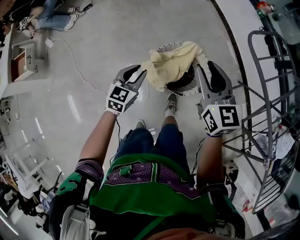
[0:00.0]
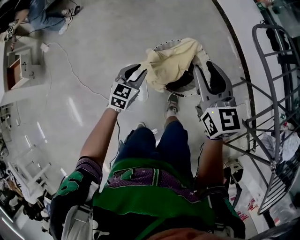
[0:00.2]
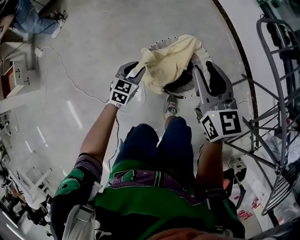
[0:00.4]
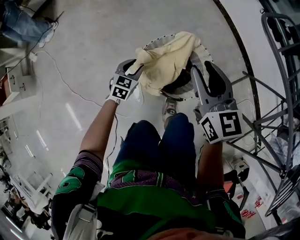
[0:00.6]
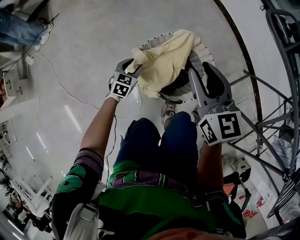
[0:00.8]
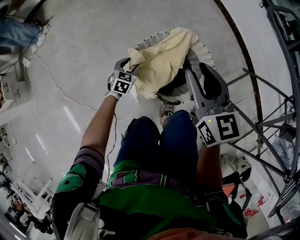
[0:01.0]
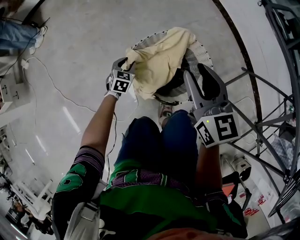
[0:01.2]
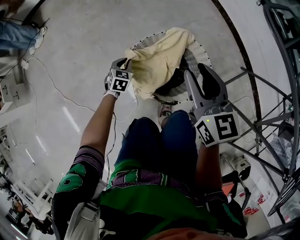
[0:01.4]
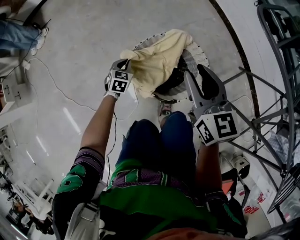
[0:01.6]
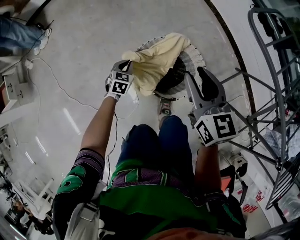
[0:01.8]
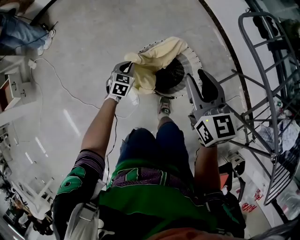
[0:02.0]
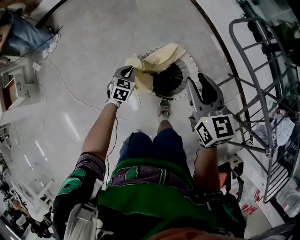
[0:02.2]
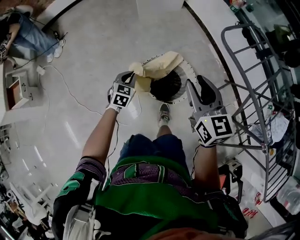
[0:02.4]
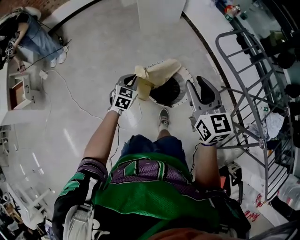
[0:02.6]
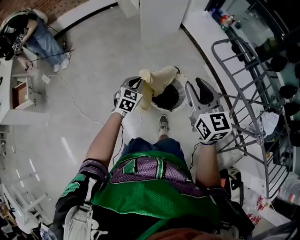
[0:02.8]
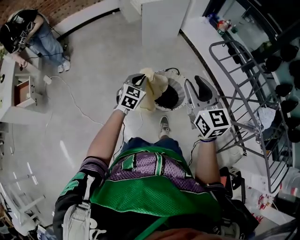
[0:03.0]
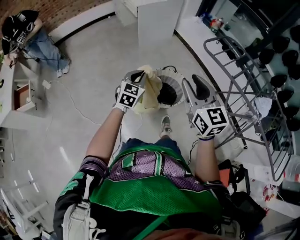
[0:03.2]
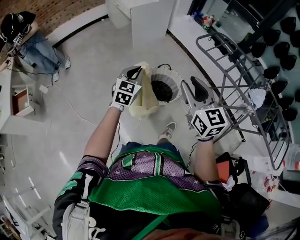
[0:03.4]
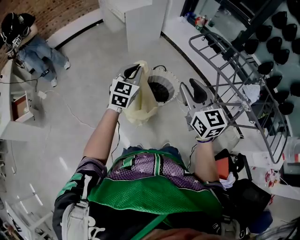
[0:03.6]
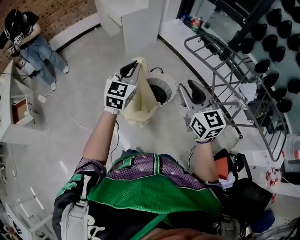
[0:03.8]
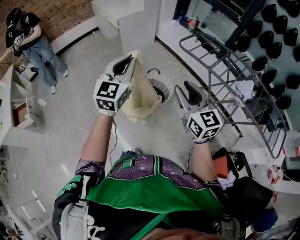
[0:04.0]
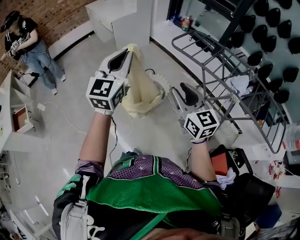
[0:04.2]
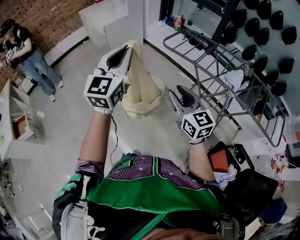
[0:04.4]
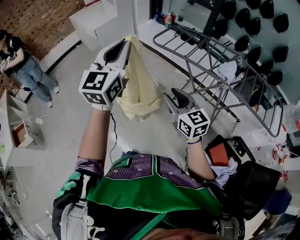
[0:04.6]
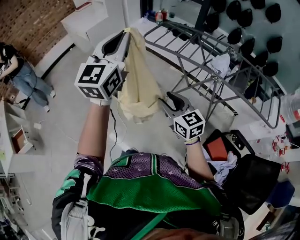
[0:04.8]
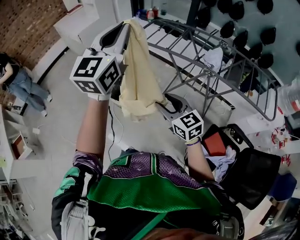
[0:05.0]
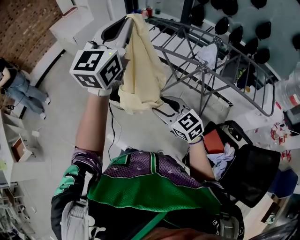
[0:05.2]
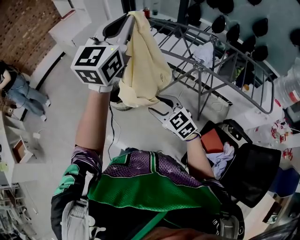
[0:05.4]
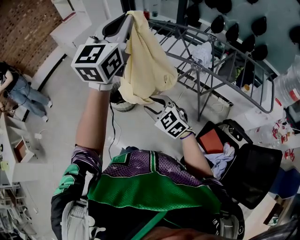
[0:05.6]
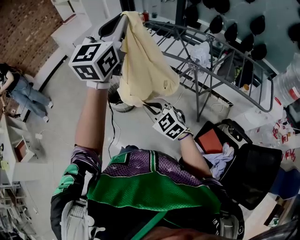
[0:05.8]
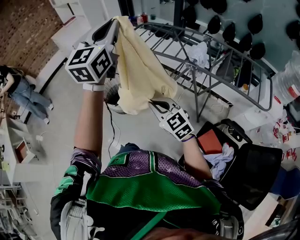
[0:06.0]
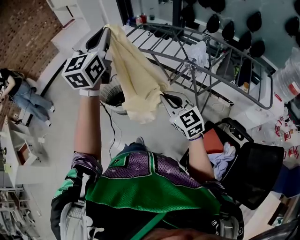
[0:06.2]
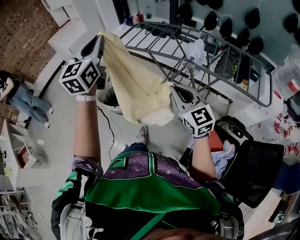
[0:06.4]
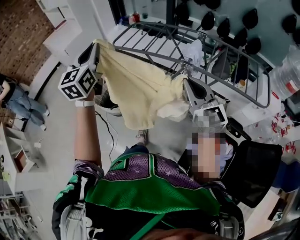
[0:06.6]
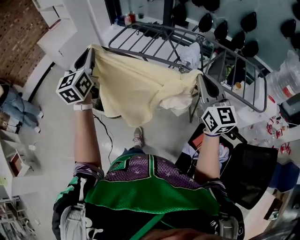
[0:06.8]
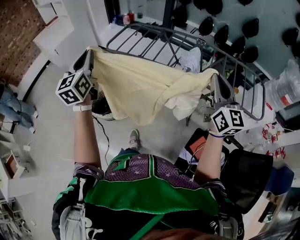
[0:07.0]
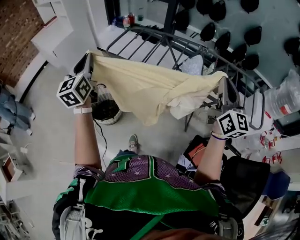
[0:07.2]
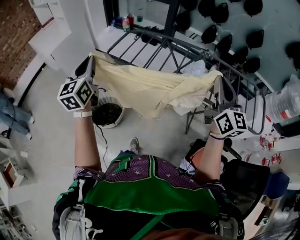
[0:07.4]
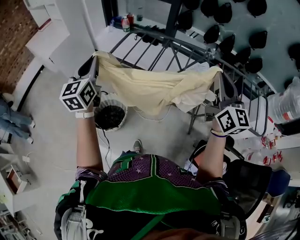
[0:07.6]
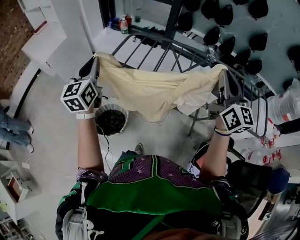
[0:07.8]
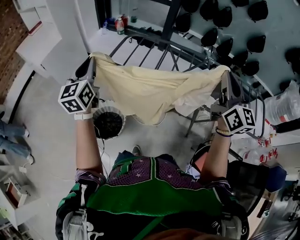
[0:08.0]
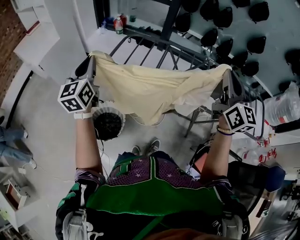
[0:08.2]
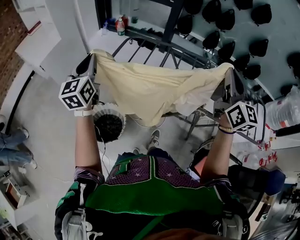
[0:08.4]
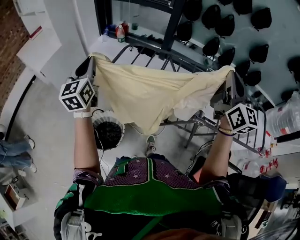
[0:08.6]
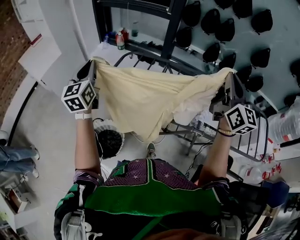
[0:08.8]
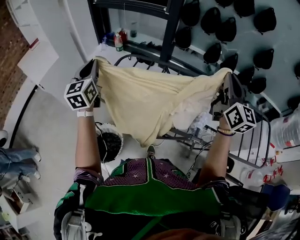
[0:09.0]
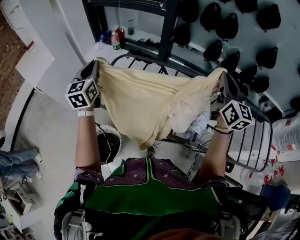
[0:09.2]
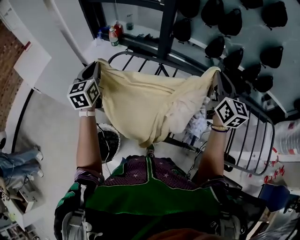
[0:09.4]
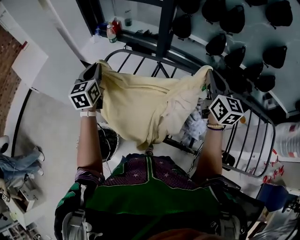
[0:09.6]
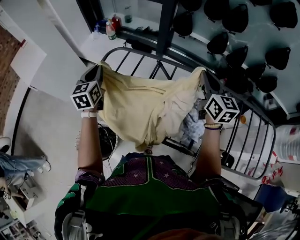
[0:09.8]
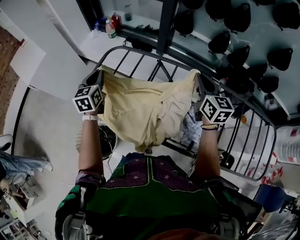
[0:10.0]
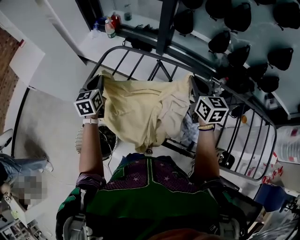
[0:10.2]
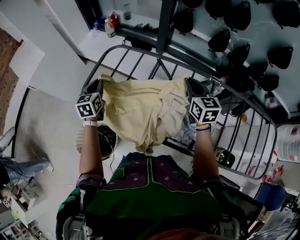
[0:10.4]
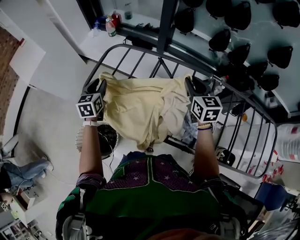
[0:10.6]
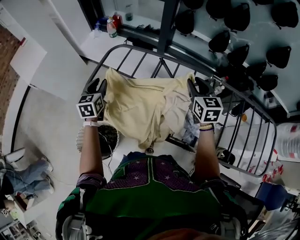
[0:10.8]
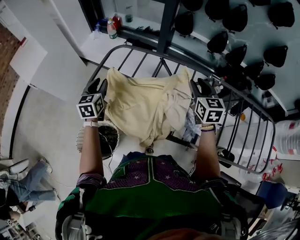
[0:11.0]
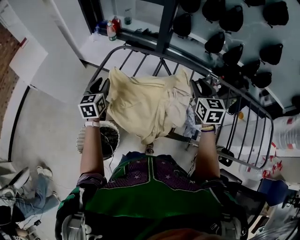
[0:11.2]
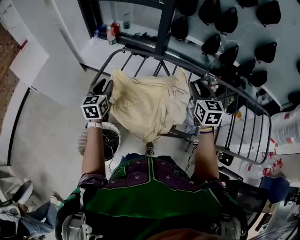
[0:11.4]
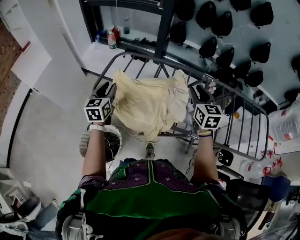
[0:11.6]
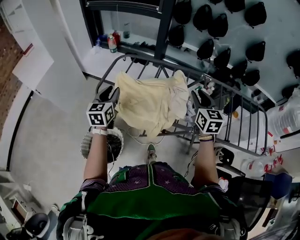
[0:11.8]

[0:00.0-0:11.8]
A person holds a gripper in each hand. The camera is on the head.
0:00.0 to 0:01.4: The left gripper shifts roughly 35 cm downward, turns by about 20 degrees, and opens and closes again. The right gripper heads downward, covering roughly 20 cm.
0:01.4 to 0:03.0: The left gripper goes about 50 cm upward, and changes its angle by roughly 30 degrees, while the right gripper moves upward and backward, roughly 40 cm.
0:03.0 to 0:04.4: The right gripper goes some 25 cm backward and to the right. The left gripper moves upward and backward, about 40 cm, and tips its fingers upward by roughly 30 degrees.
0:04.4 to 0:06.0: The right gripper moves to the right, backward and downward, about 20 cm, and closes its fingers; the left gripper is displaced to the right by roughly 25 cm.
0:06.0 to 0:07.4: The left gripper is displaced forward, downward and to the left by roughly 30 cm. Meanwhile the right gripper heads forward, to the right and upward, covering roughly 40 cm, and turns by roughly 50 degrees.
0:07.4 to 0:08.8: Both grippers move forward, roughly 25 cm.
0:08.8 to 0:10.4: The right gripper heads downward and forward, covering approximately 35 cm, and angles its fingers downward, by roughly 30 degrees. The left gripper is displaced downward, forward and to the right by some 30 cm, and swivels approximately 30 degrees.
0:10.4 to 0:11.8: The grippers both shift backward and upward by roughly 20 cm. The left gripper opens its fingers. The right gripper opens up.

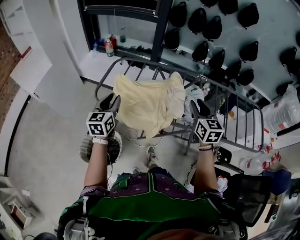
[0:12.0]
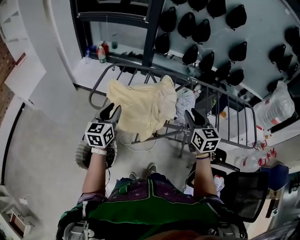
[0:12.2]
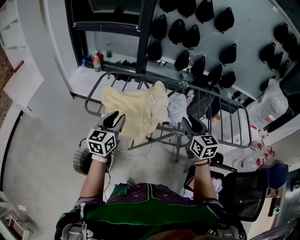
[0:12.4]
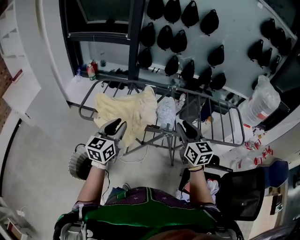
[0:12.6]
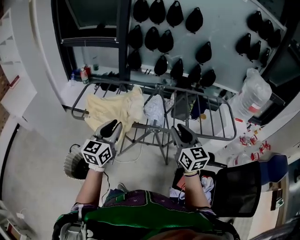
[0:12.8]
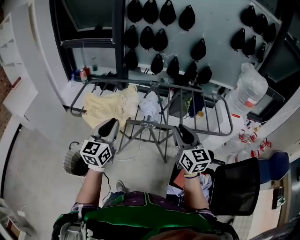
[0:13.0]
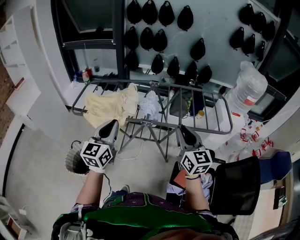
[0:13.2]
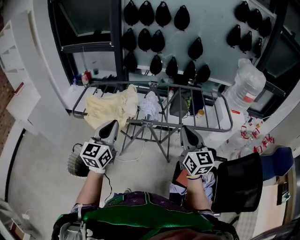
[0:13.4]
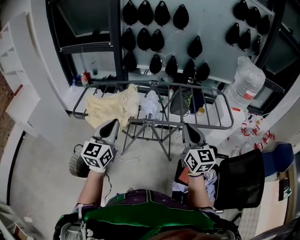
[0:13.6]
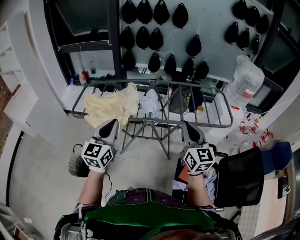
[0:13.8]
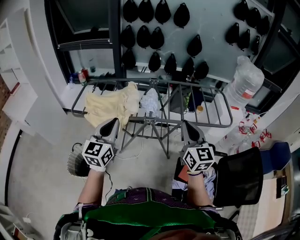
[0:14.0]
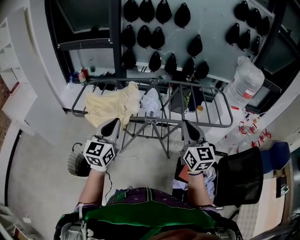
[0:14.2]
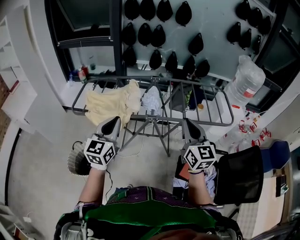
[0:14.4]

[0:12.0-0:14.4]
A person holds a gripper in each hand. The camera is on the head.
0:12.0 to 0:13.2: The right gripper is displaced backward and to the right by some 35 cm; the left gripper heads to the right, backward and upward, covering roughly 40 cm, rotates about 20 degrees, and closes.
0:13.2 to 0:14.4: The right gripper moves about 5 cm.

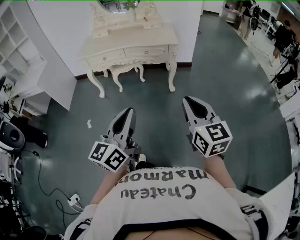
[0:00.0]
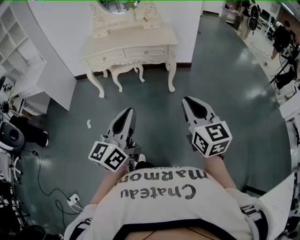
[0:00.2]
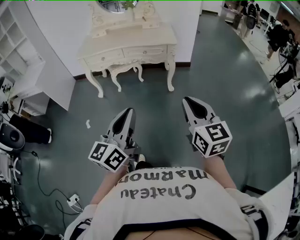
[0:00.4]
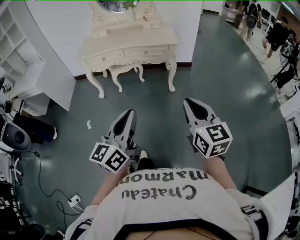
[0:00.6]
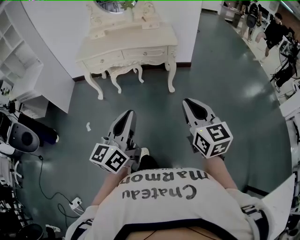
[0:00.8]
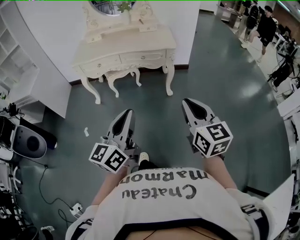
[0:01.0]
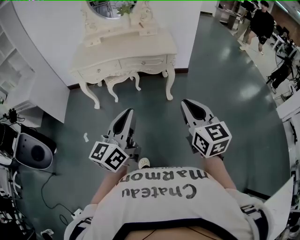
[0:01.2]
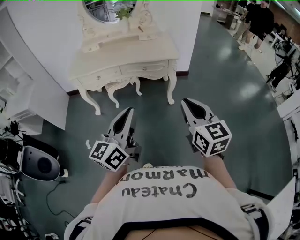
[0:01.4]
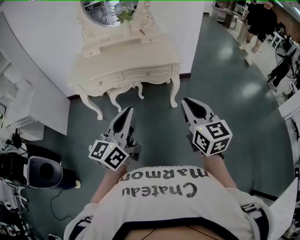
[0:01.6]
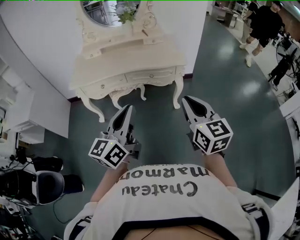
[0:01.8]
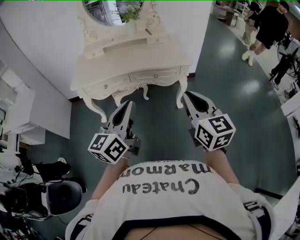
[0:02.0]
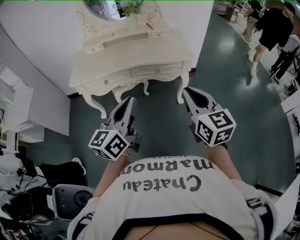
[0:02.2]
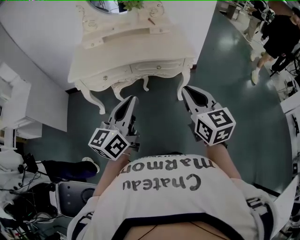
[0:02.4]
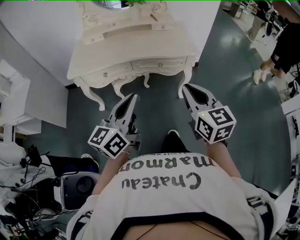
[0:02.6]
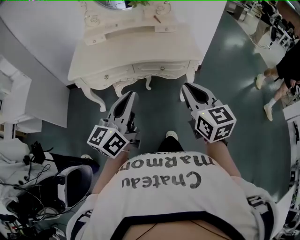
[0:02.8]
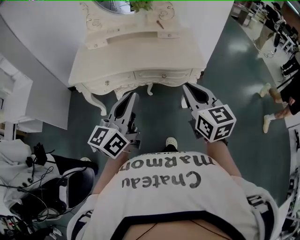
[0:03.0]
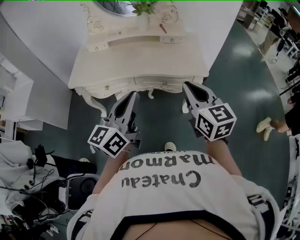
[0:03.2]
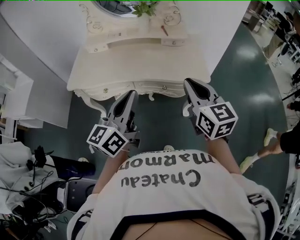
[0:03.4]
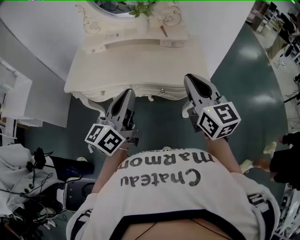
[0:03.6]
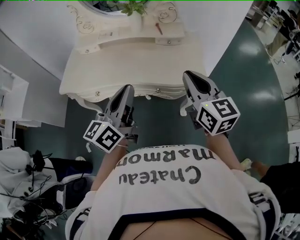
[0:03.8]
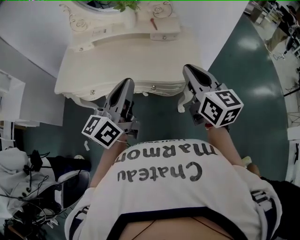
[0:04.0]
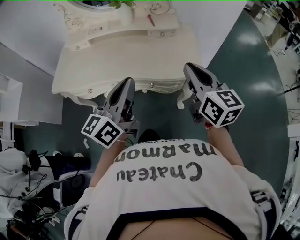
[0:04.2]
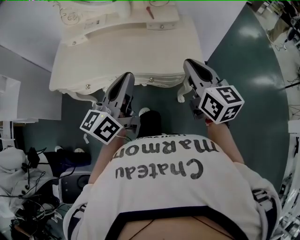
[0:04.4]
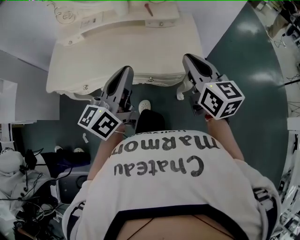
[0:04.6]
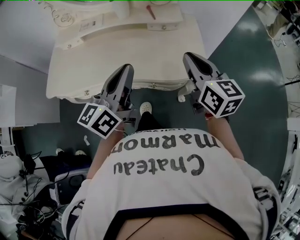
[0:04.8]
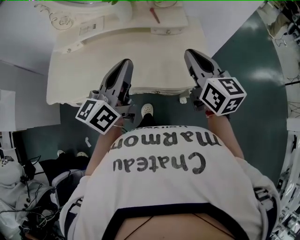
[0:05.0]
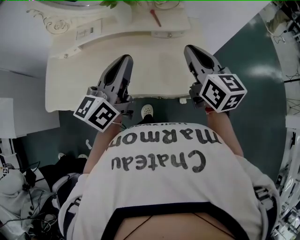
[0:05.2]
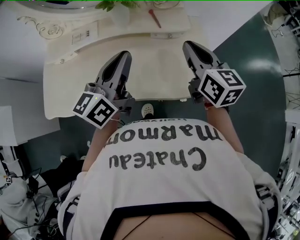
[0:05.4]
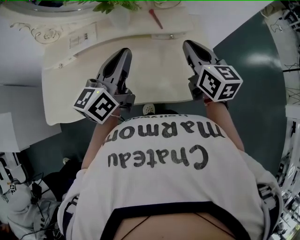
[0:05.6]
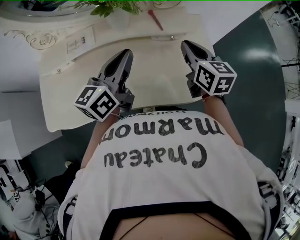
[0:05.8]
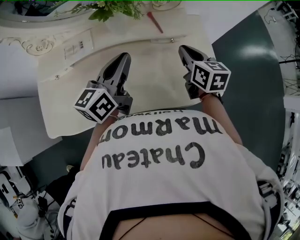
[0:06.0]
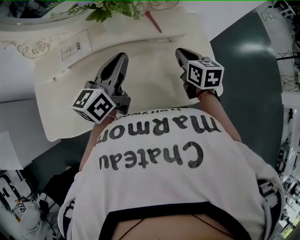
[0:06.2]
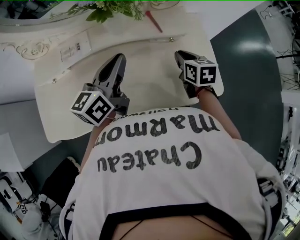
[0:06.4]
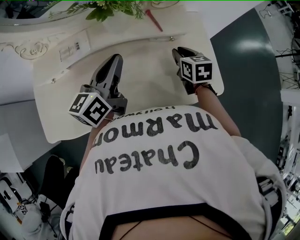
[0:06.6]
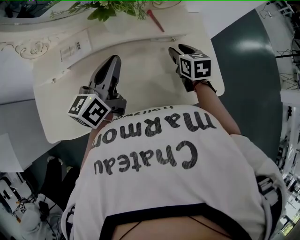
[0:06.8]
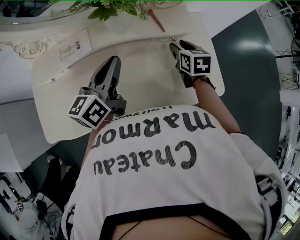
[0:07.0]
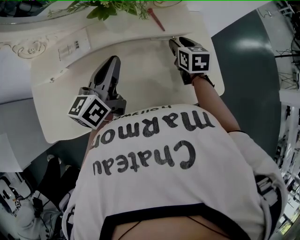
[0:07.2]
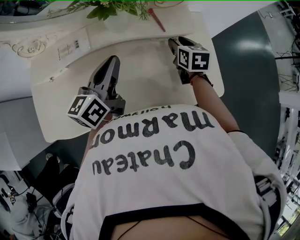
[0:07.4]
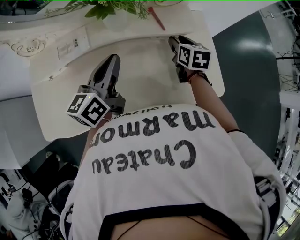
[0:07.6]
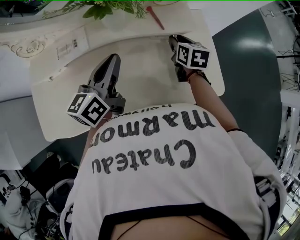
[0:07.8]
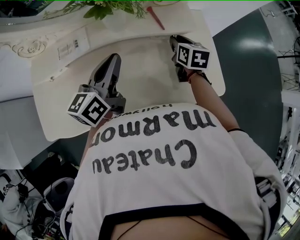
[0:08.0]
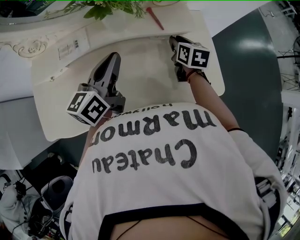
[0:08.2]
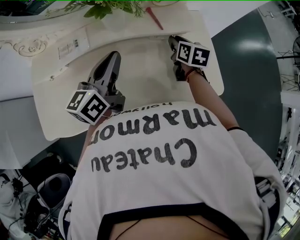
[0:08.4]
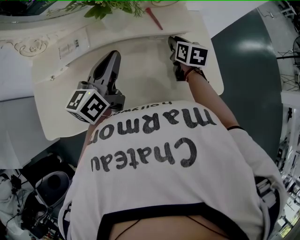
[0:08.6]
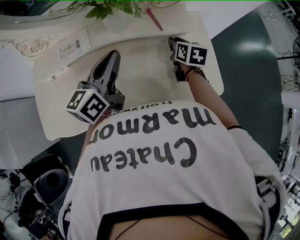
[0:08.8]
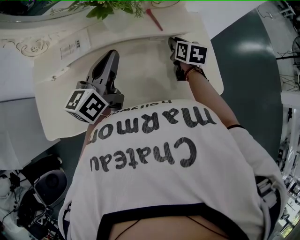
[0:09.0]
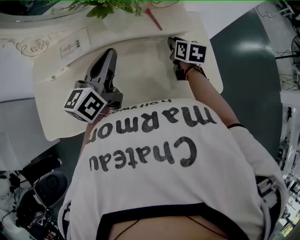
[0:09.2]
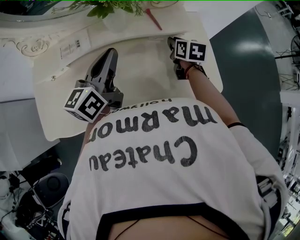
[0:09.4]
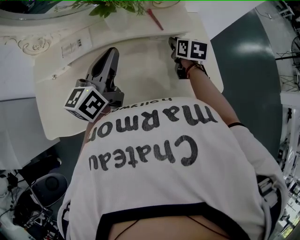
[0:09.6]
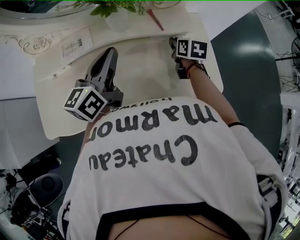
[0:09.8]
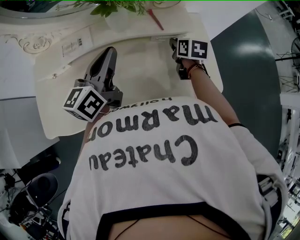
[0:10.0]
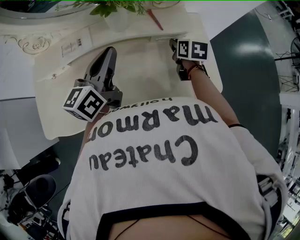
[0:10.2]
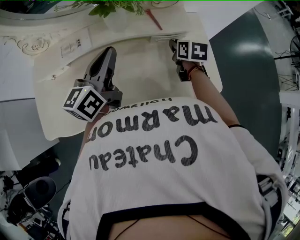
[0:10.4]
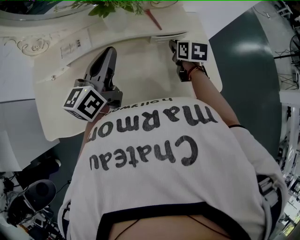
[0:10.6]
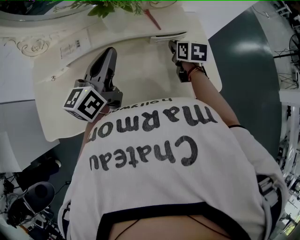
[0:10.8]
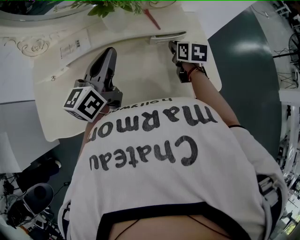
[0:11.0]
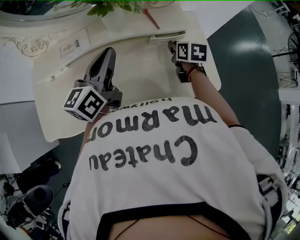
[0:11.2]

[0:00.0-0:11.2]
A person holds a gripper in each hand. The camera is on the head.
0:00.0 to 0:01.6: The two grippers go roughly 25 cm forward.
0:01.6 to 0:03.2: Both grippers travel together forward, about 25 cm.
0:03.2 to 0:04.8: The two grippers go roughly 25 cm forward and to the right.
0:04.8 to 0:06.4: The right gripper heads forward, downward and to the left, covering roughly 30 cm, and tips its fingers downward by roughly 30 degrees. The left gripper travels forward and to the left by about 25 cm.
0:06.4 to 0:08.0: The right gripper is displaced forward by roughly 5 cm.
0:08.0 to 0:11.2: The grippers make only small movements.
